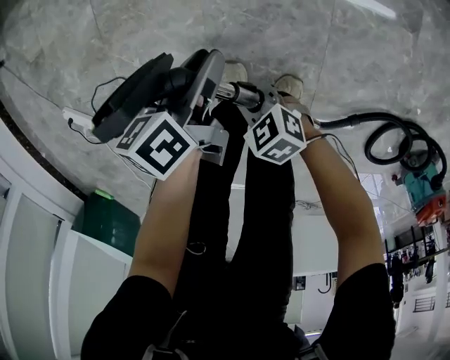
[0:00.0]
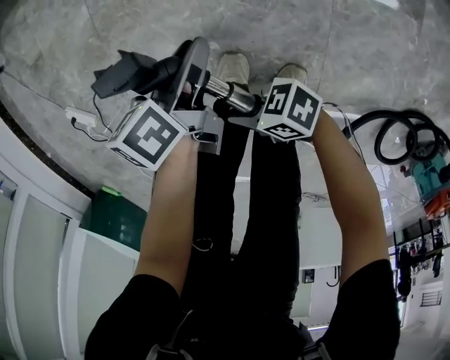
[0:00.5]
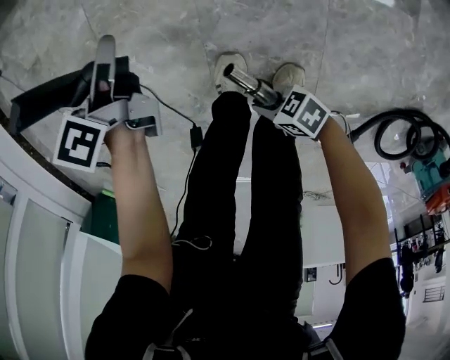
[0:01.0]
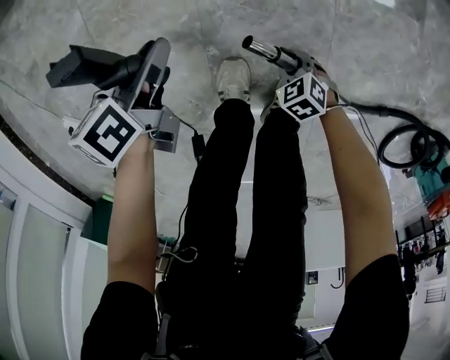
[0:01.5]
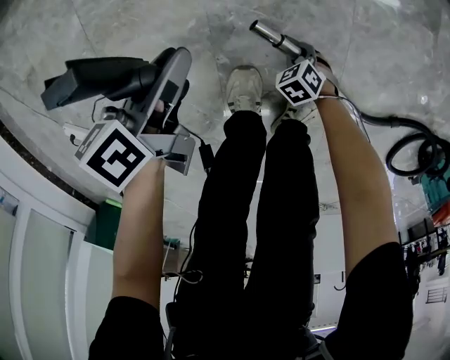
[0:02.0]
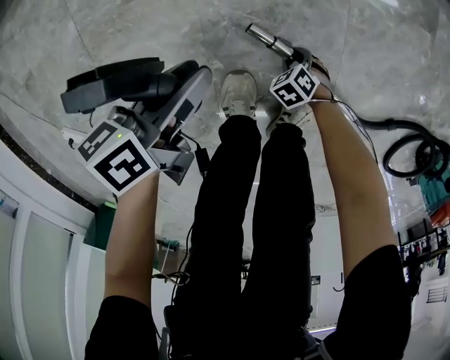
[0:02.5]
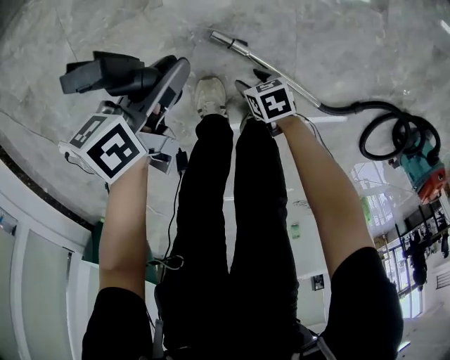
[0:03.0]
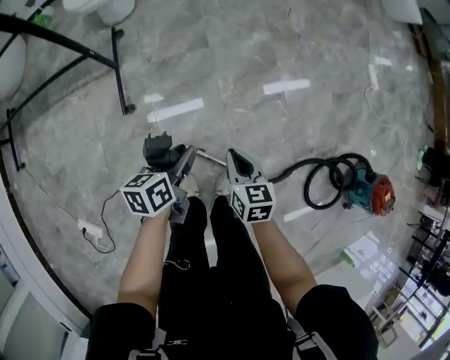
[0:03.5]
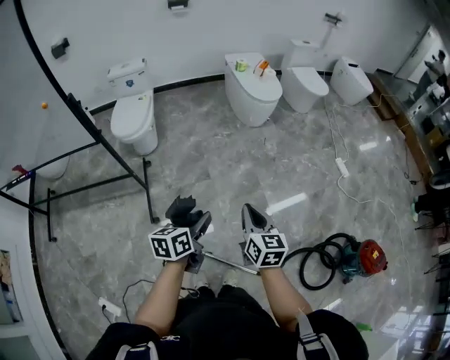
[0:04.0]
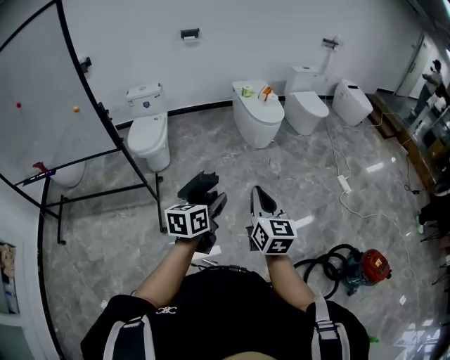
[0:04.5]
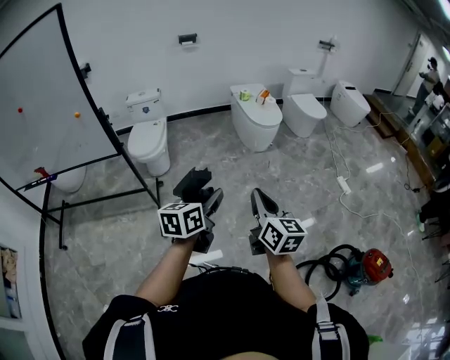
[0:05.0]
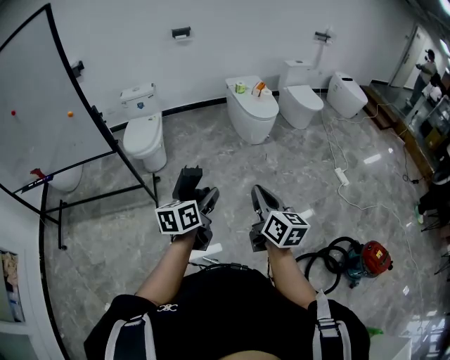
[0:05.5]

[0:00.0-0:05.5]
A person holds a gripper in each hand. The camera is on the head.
0:00.0 to 0:02.0: The left gripper ends up roughly 10 cm from where it was, while the right gripper is displaced downward by approximately 25 cm, and angles its fingers downward, by approximately 30 degrees.
0:02.0 to 0:03.5: The right gripper heads upward, covering approximately 60 cm, tilts its fingers some 40 degrees upward, and opens and closes again; the left gripper moves upward, roughly 40 cm, and rotates about 20 degrees.
0:03.5 to 0:05.5: Both grippers travel together upward, some 50 cm. The right gripper points its fingers some 40 degrees further upward; the left gripper changes its angle by about 30 degrees.

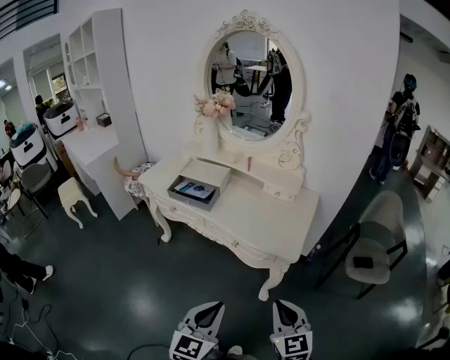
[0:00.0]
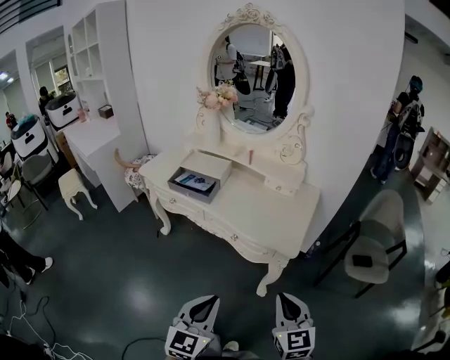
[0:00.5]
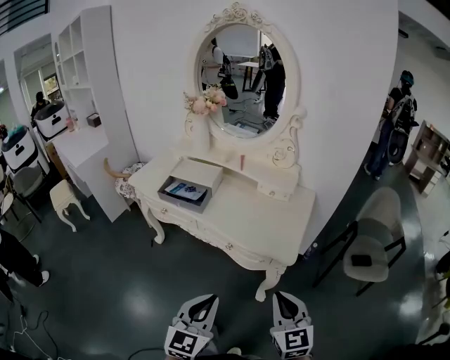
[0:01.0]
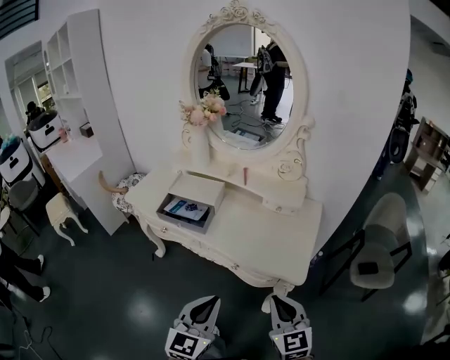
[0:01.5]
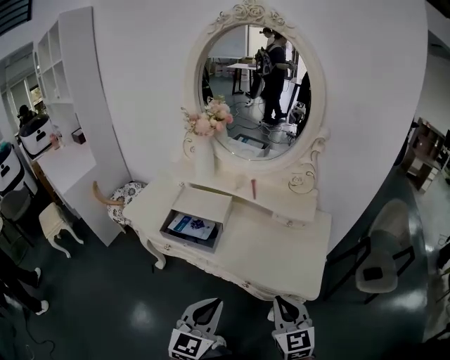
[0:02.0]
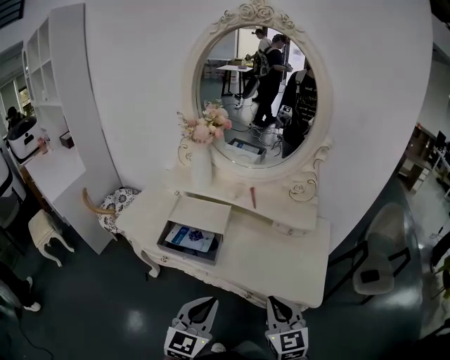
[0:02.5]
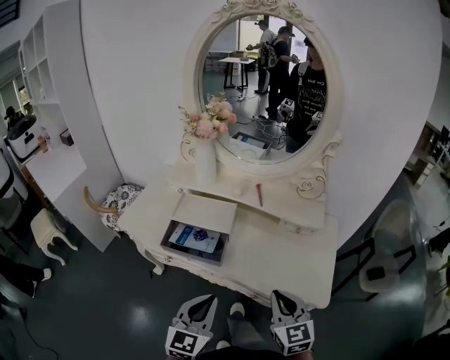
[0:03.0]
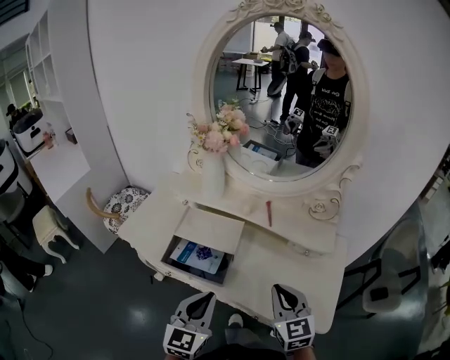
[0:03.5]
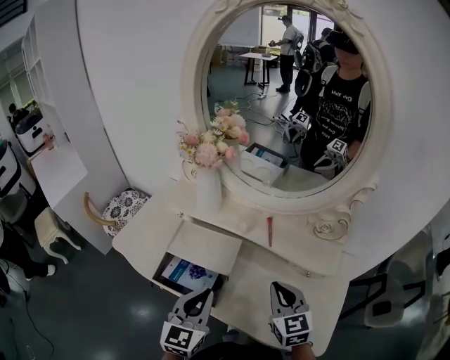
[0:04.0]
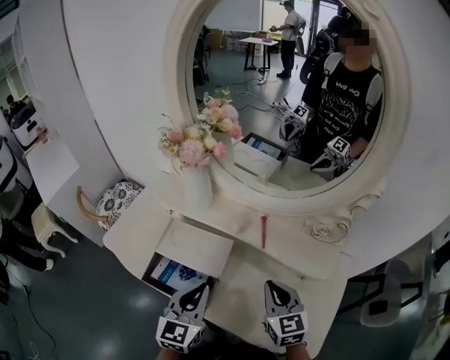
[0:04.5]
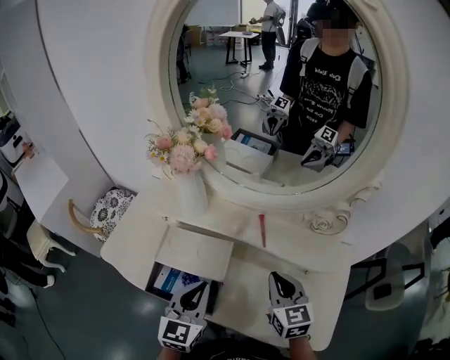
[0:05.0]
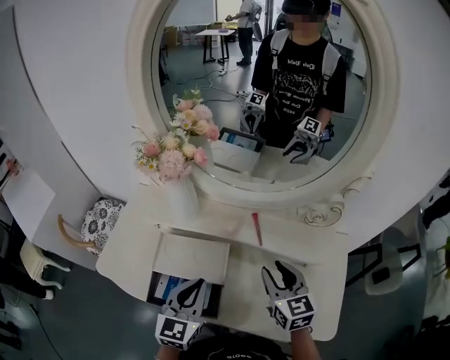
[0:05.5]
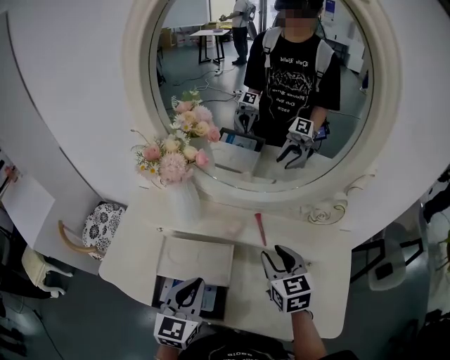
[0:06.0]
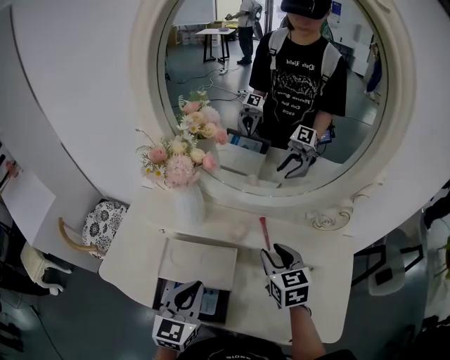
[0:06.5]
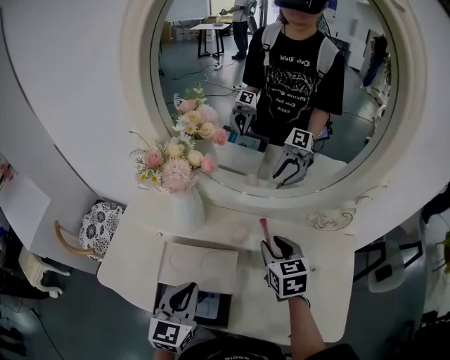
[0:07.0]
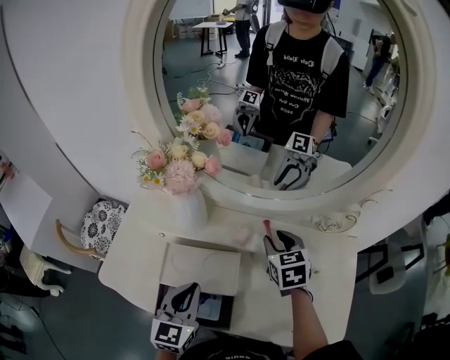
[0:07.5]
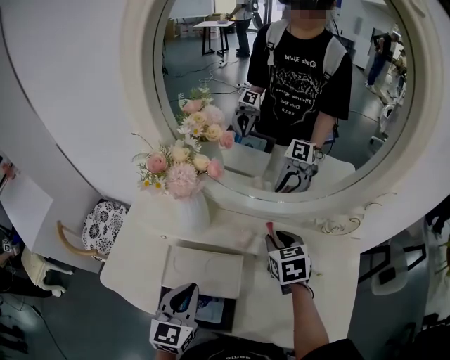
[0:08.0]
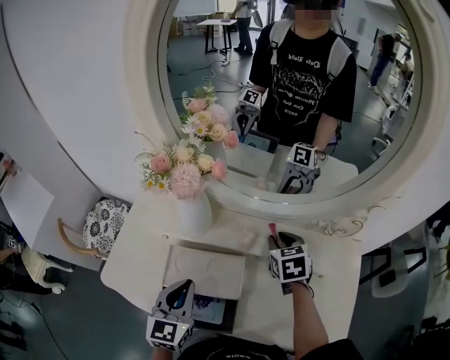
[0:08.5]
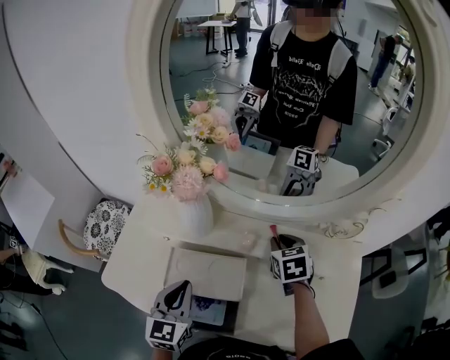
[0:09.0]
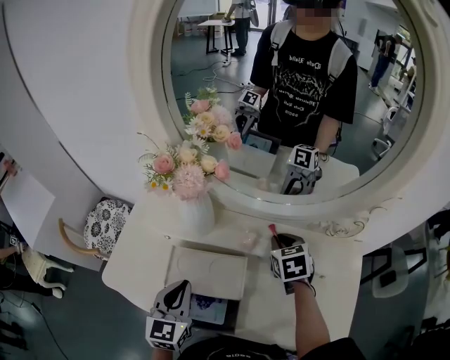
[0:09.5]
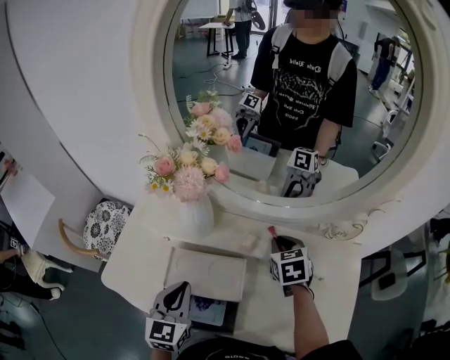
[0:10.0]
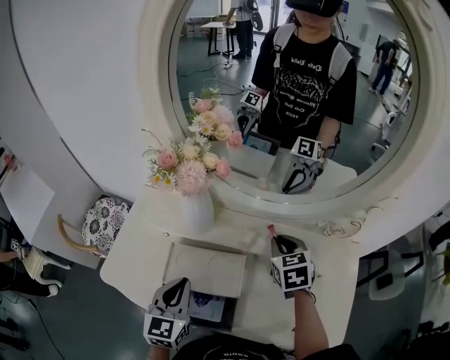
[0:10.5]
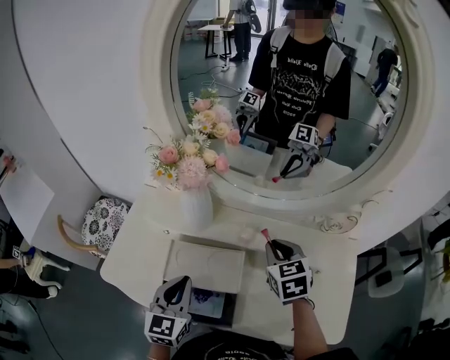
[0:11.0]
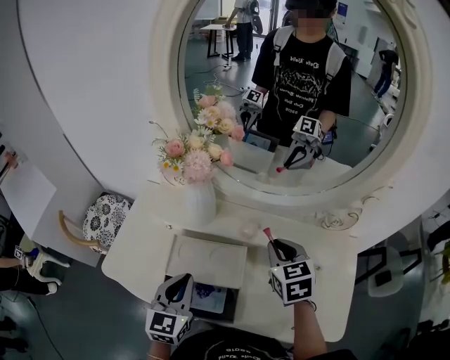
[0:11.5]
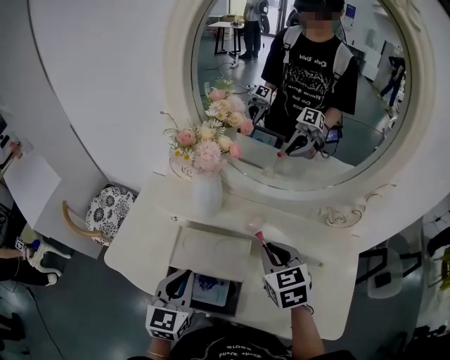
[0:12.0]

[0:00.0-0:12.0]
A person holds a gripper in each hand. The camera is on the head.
0:00.0 to 0:02.0: Both grippers travel together forward and to the left, some 20 cm.
0:02.0 to 0:04.0: The grippers both shift forward by approximately 25 cm.
0:04.0 to 0:06.0: The grippers both shift forward by about 10 cm. The right gripper opens up.
0:06.0 to 0:08.0: The left gripper ends up roughly 5 cm from where it was, while the right gripper shifts roughly 10 cm forward.
0:08.0 to 0:10.0: The grippers move only a little.
0:10.0 to 0:12.0: The right gripper heads backward, to the left and upward, covering some 15 cm.

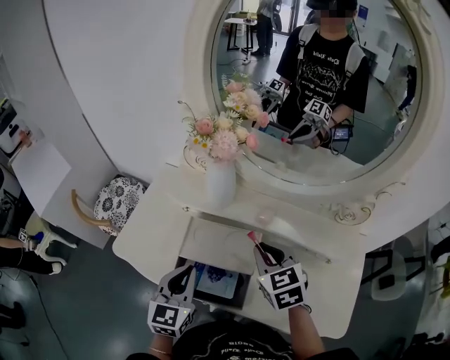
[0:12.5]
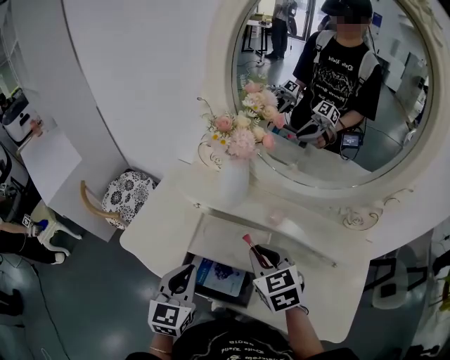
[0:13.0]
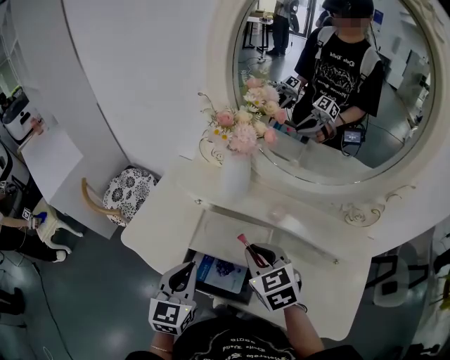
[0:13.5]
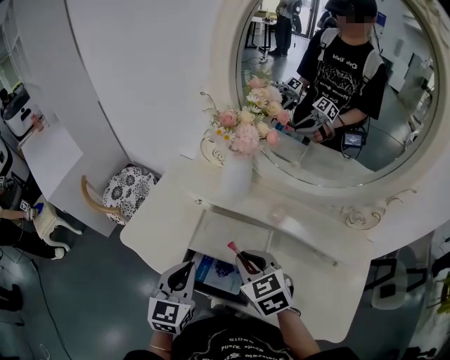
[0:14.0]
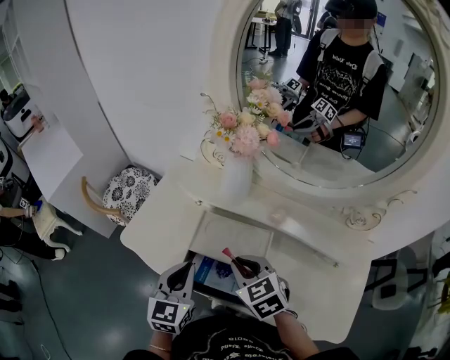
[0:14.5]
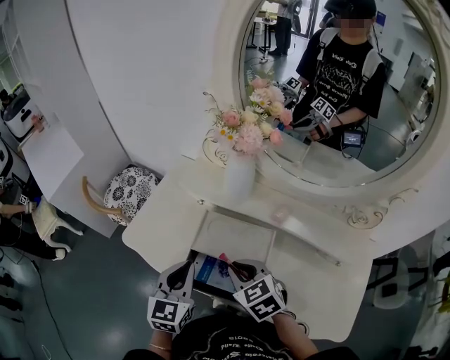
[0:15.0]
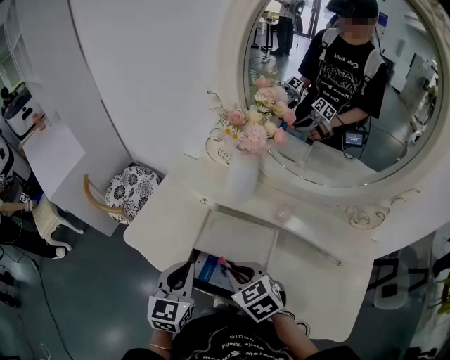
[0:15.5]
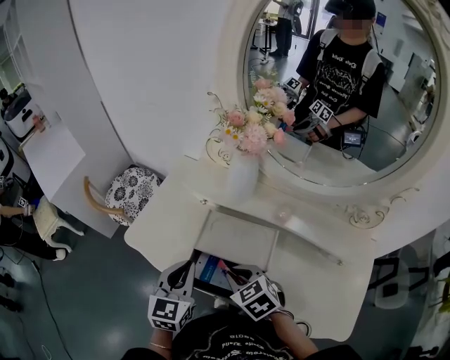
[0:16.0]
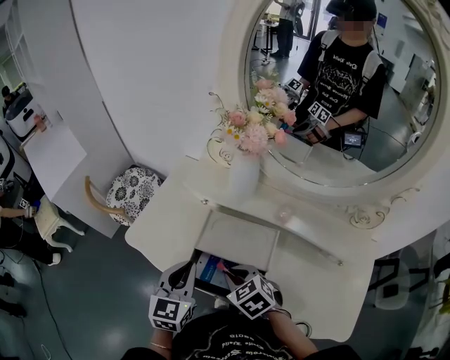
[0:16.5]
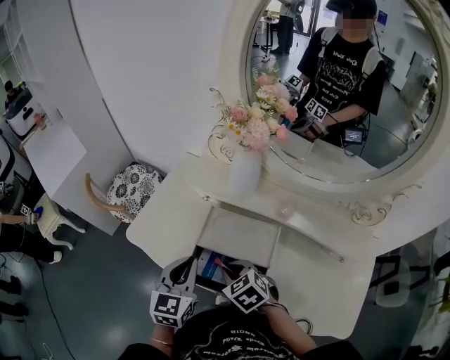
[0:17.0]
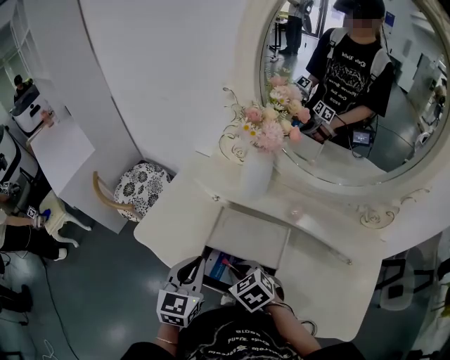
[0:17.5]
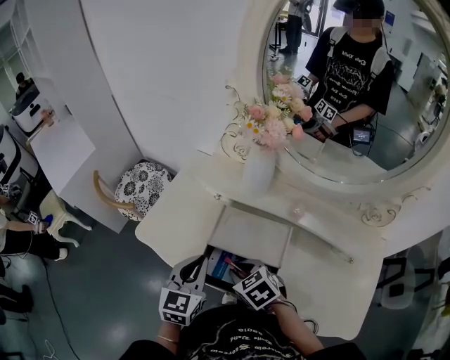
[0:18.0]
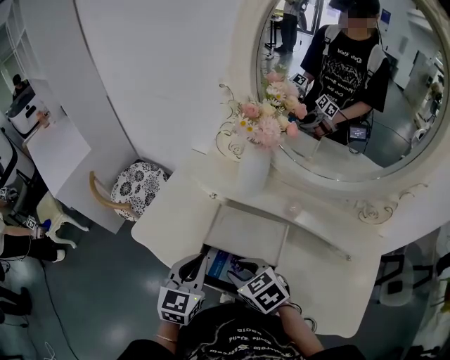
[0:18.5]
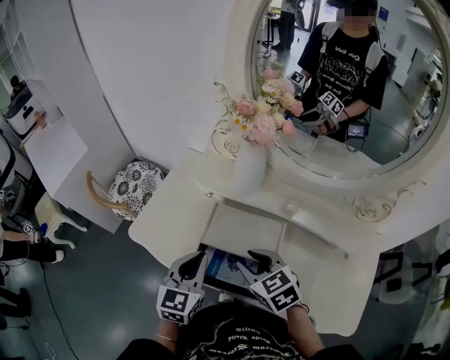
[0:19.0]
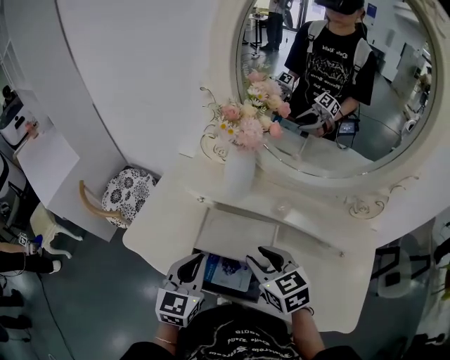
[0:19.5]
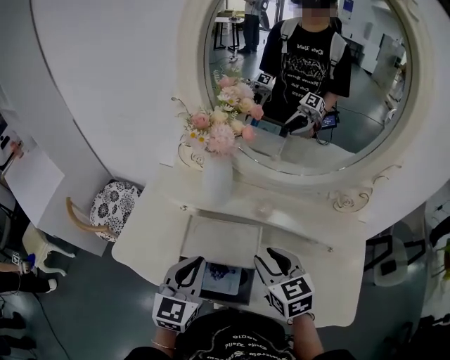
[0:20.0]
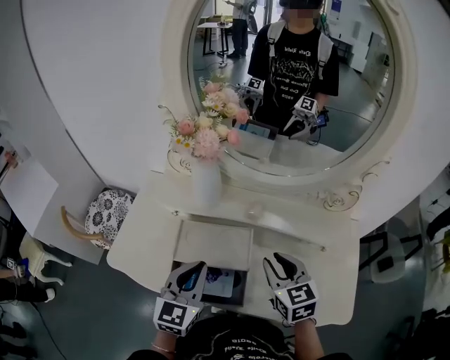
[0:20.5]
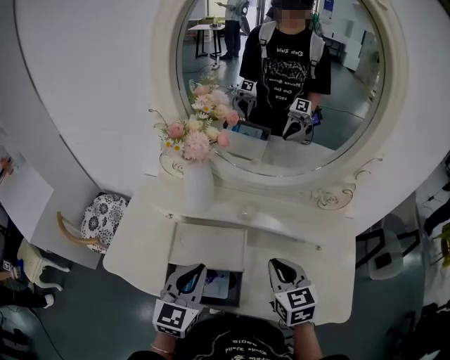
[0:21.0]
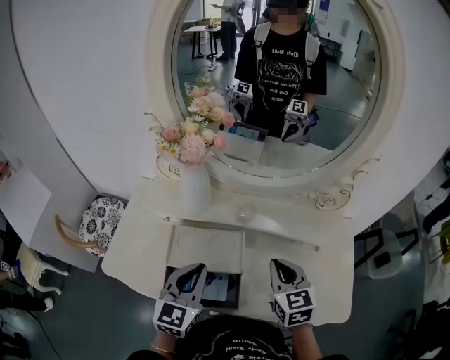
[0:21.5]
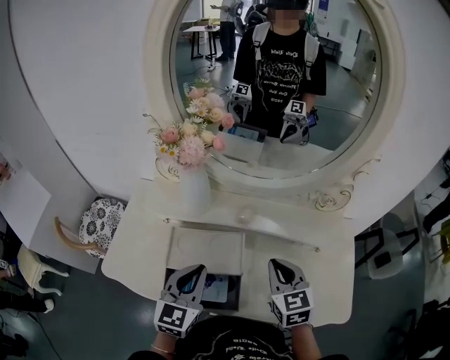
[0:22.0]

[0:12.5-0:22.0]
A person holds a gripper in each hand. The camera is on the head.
0:12.5 to 0:14.5: The right gripper is displaced to the left by about 10 cm.
0:14.5 to 0:16.5: The right gripper shifts roughly 5 cm downward.
0:16.5 to 0:18.0: The grippers stay close to where they were, moving slightly.
0:18.0 to 0:20.0: The left gripper shifts some 5 cm to the right. The right gripper moves to the right and upward, about 20 cm, and changes its angle by approximately 40 degrees.
0:20.0 to 0:22.0: The right gripper moves to the right, roughly 5 cm, and closes up.
